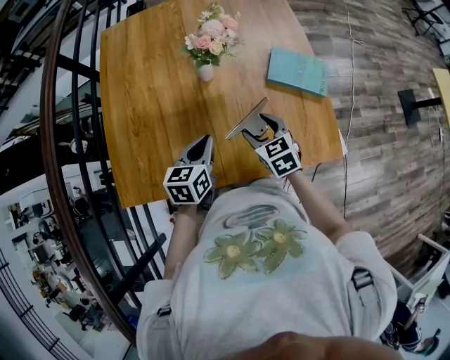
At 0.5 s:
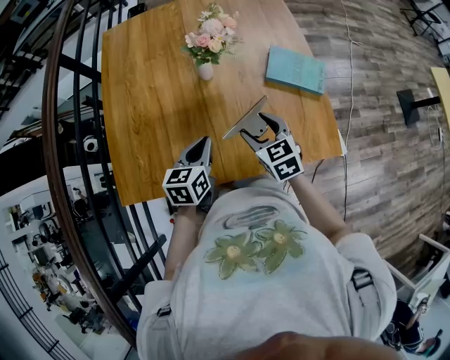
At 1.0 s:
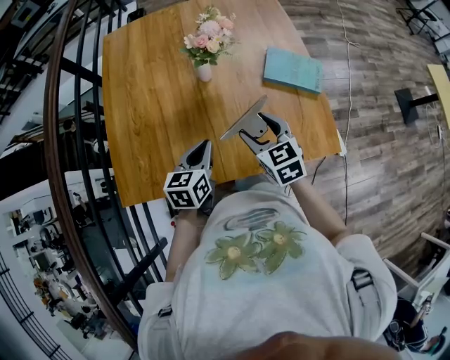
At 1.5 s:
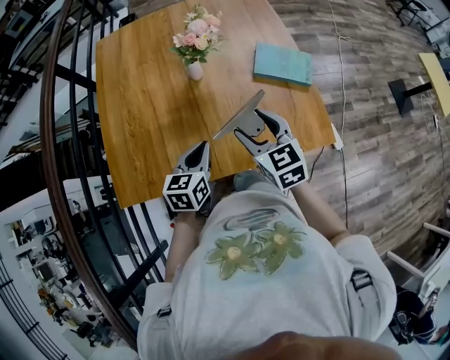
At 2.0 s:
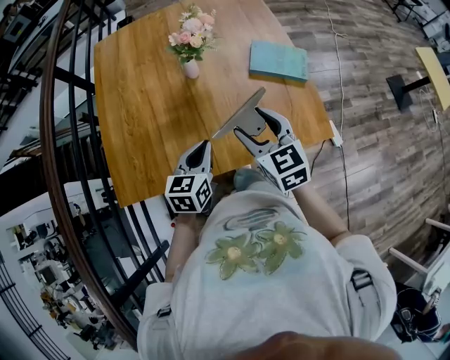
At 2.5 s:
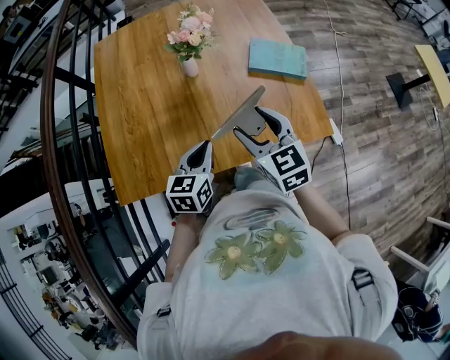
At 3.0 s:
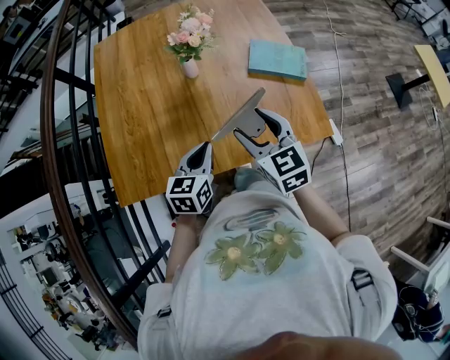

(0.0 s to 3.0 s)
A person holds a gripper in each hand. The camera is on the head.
0.0 s - 1.5 s: The right gripper heads upward and backward, covering some 15 cm. Meanwhile the left gripper is displaced backward by about 5 cm.
1.5 s - 3.0 s: The grippers stay close to where they were, moving slightly.

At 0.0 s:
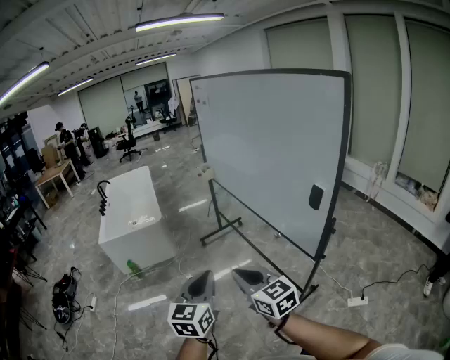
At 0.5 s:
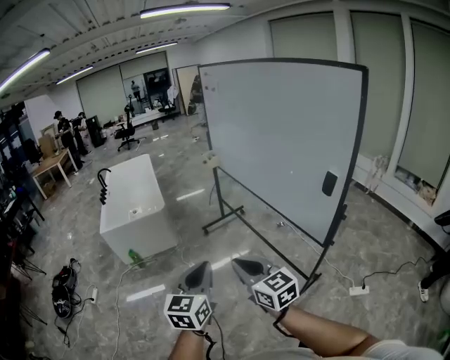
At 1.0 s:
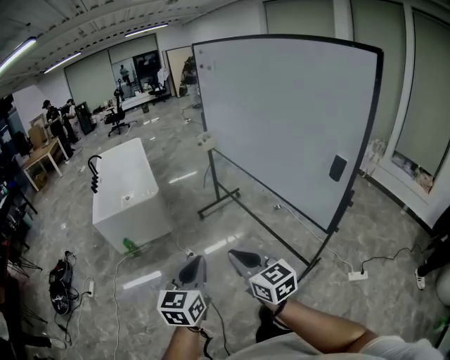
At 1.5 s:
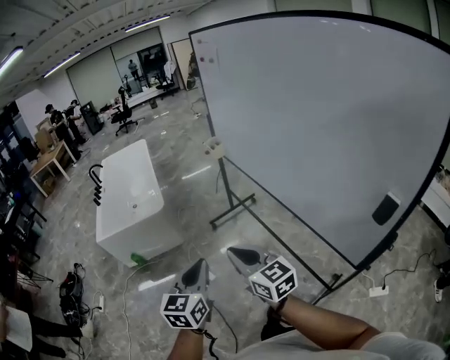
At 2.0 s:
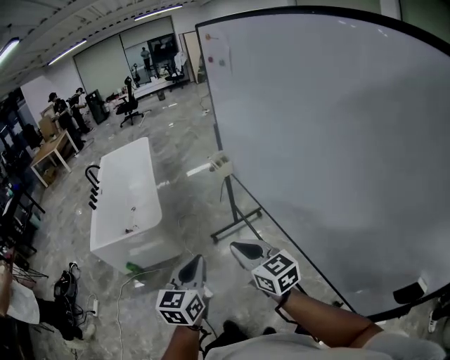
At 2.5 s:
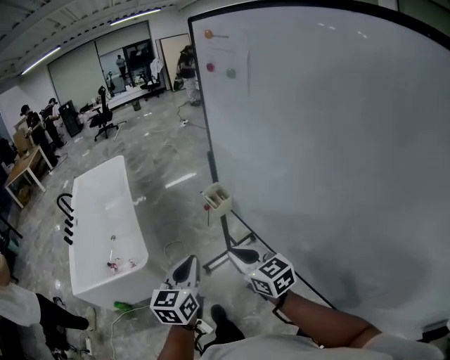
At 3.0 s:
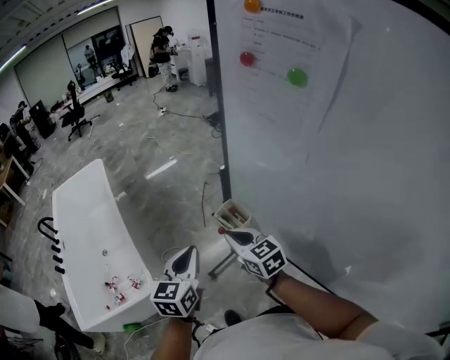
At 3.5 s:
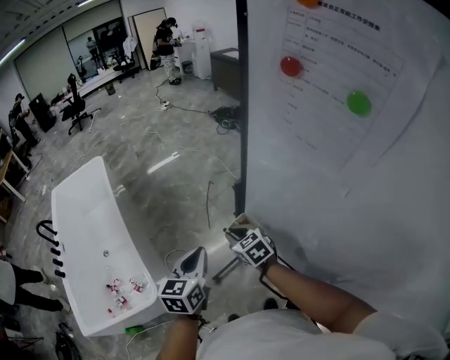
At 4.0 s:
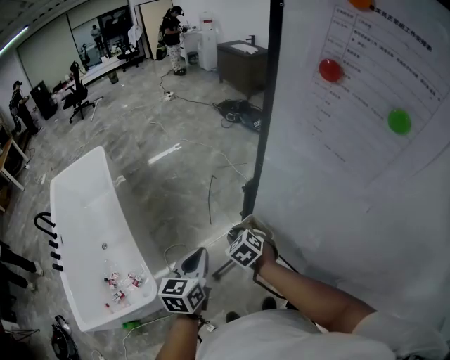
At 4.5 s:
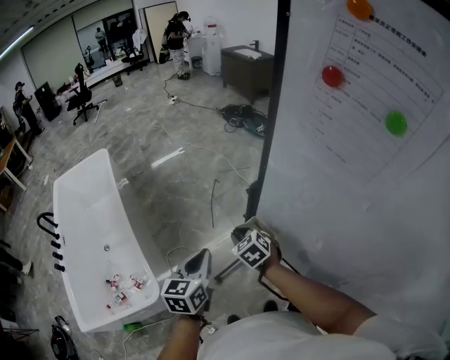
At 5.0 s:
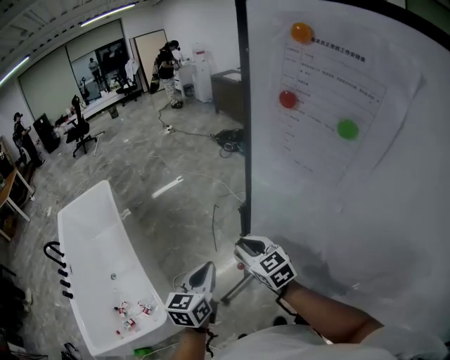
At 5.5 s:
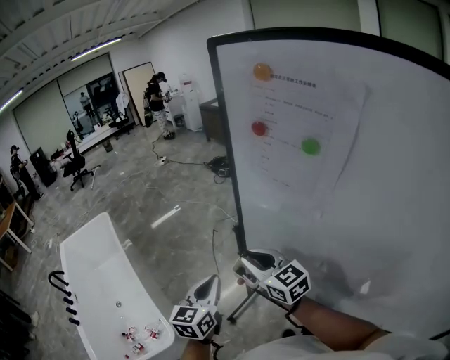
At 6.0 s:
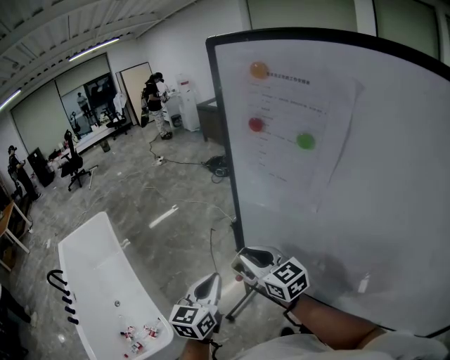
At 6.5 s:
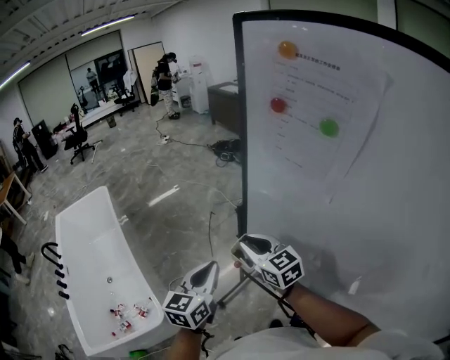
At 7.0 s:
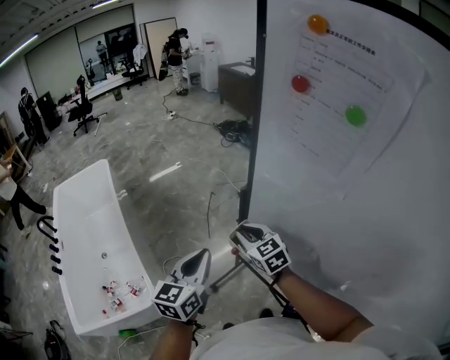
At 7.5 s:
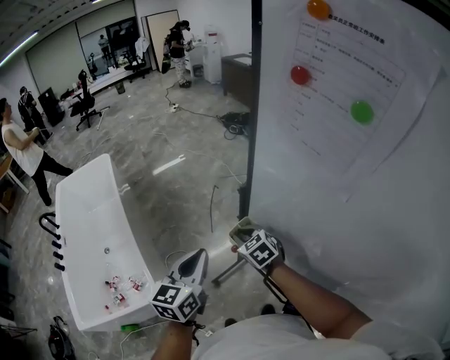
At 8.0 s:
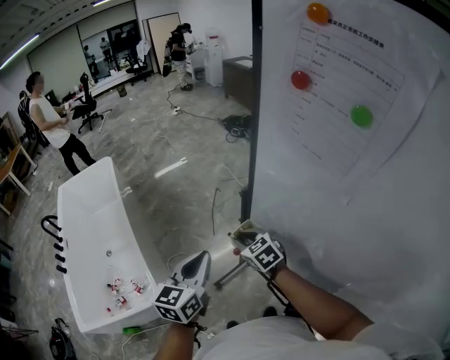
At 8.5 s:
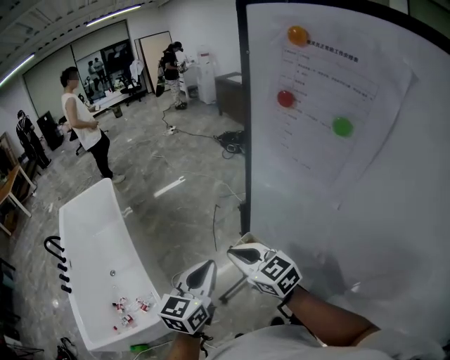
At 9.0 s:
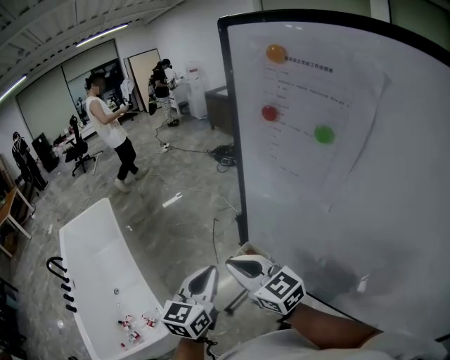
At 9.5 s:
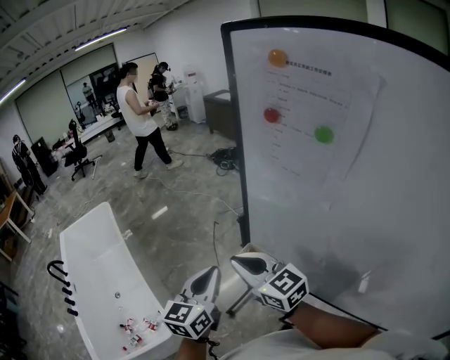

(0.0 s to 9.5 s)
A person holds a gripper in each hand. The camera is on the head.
0.0 s - 2.0 s: The two grippers travel together, forward, approximately 60 cm.
2.0 s - 4.0 s: Both grippers are carried forward, some 70 cm. The right gripper tilts its fingers approximately 40 degrees downward.
4.0 s - 5.5 s: The left gripper goes approximately 10 cm upward. Meanwhile the right gripper travels upward by roughly 25 cm, and points its fingers approximately 40 degrees further upward.
5.5 s - 7.5 s: The right gripper is displaced downward by approximately 20 cm, and points its fingers some 30 degrees further downward.
7.5 s - 9.5 s: The right gripper heads upward and backward, covering some 25 cm, and points its fingers roughly 40 degrees further upward. Meanwhile the left gripper goes roughly 5 cm upward.

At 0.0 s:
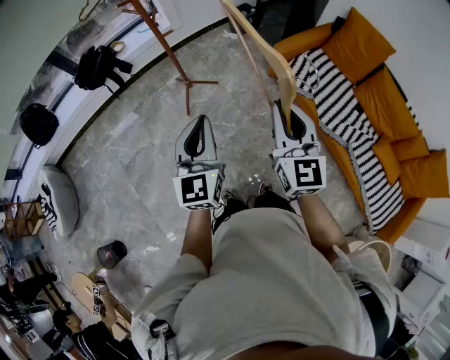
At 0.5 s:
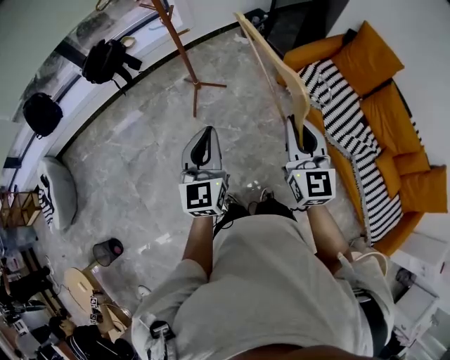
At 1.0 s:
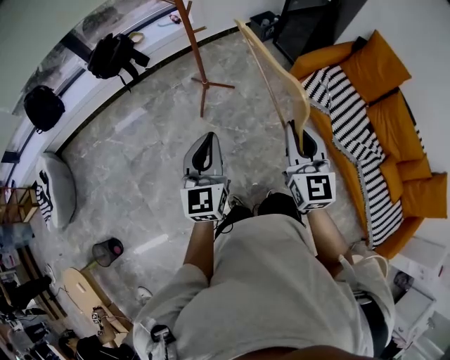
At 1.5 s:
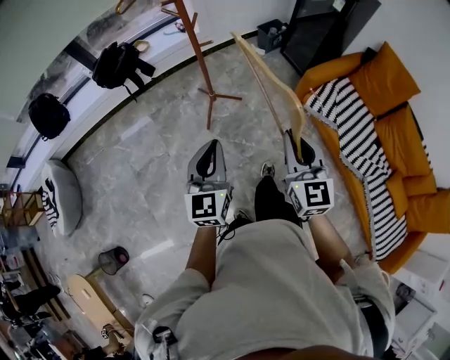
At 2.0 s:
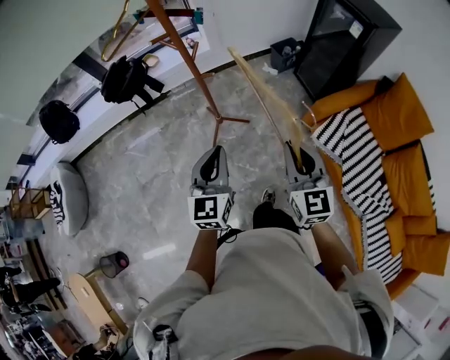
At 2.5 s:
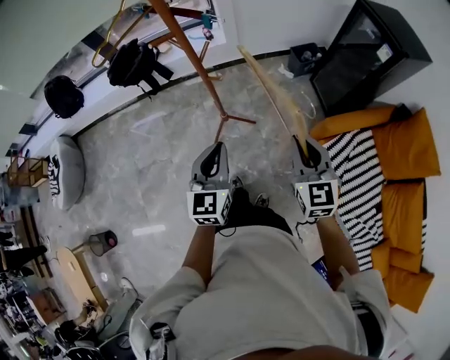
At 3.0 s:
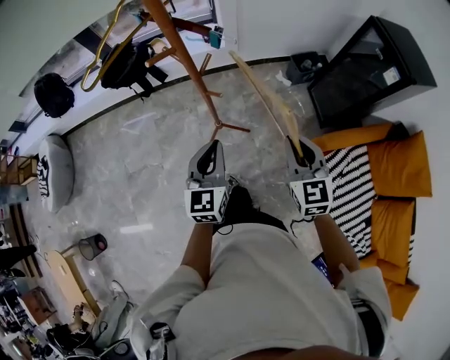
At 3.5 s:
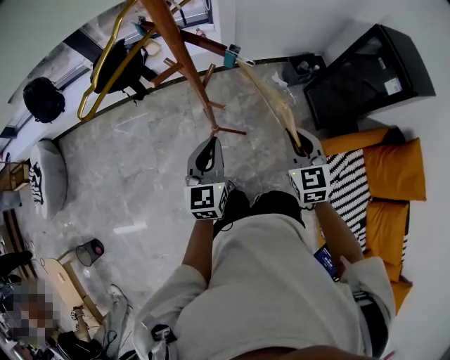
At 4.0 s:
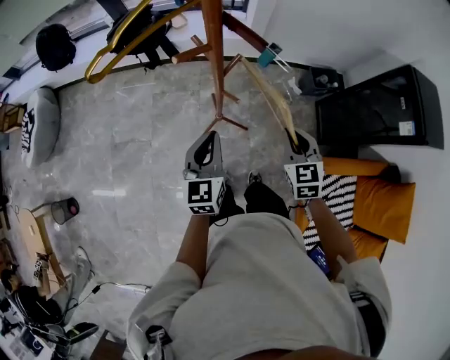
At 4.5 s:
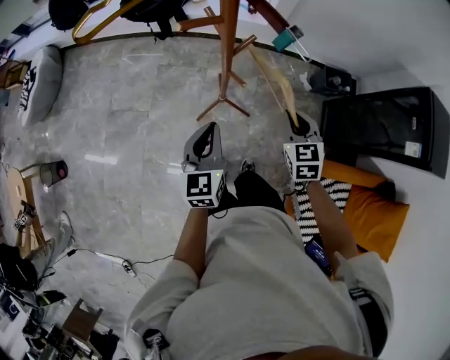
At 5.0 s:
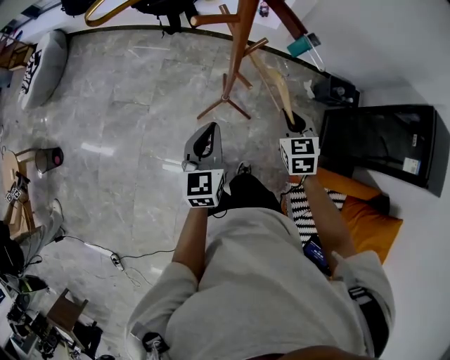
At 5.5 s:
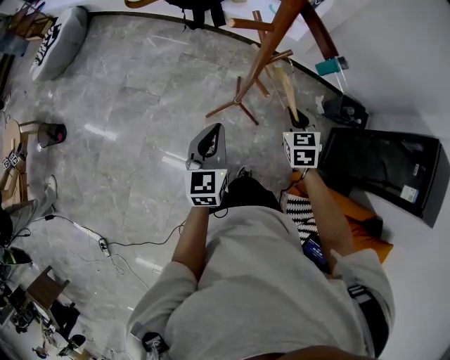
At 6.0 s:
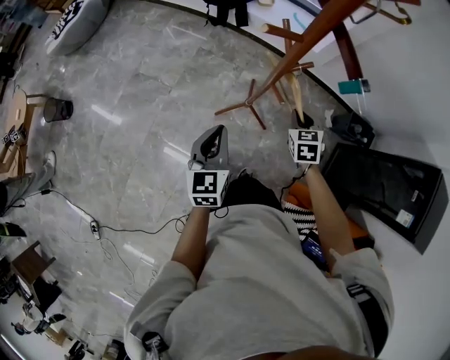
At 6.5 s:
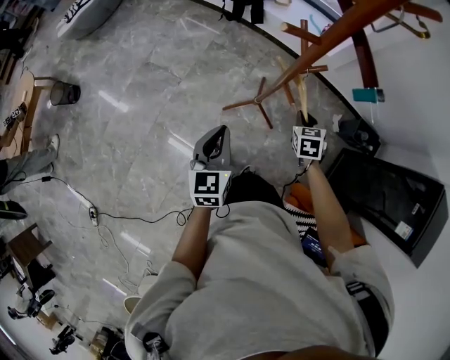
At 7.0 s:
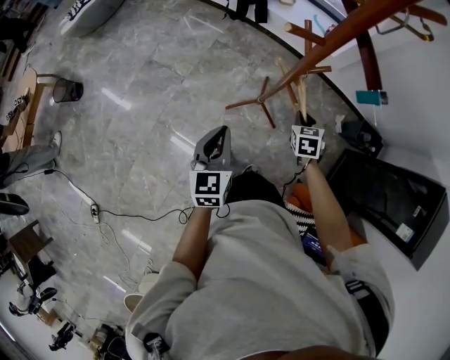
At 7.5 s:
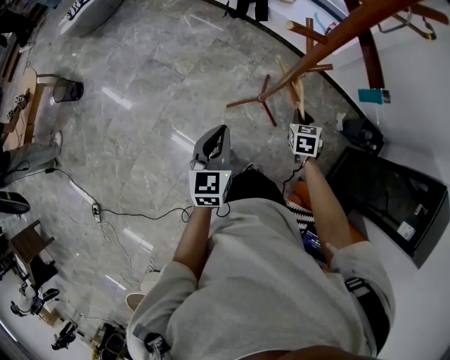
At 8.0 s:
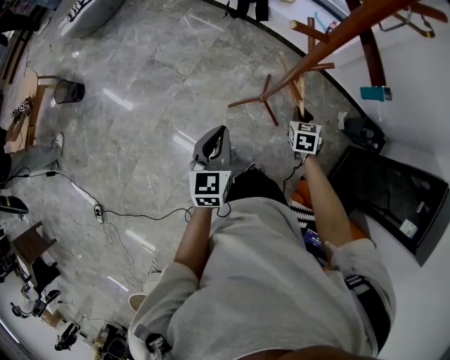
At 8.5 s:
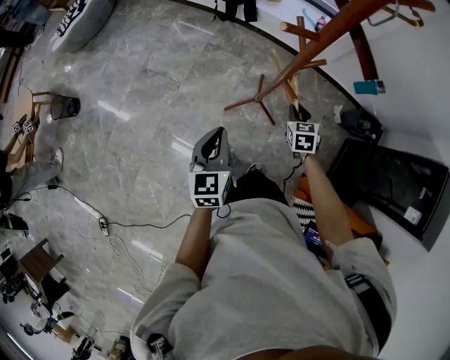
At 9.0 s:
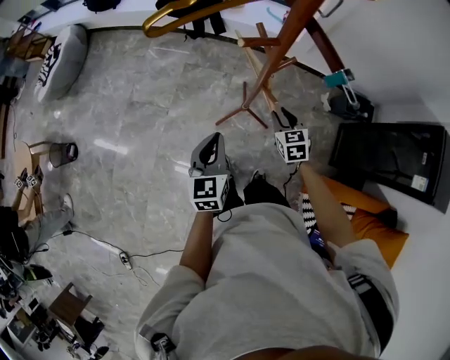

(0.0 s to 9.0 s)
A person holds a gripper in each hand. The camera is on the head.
0.0 s - 2.0 s: Both grippers travel together forward, about 25 cm.
2.0 s - 4.5 s: The left gripper shifts by some 25 cm, and swivels roughly 30 degrees; the right gripper changes place by about 40 cm, and rotates approximately 40 degrees.
4.5 s - 7.0 s: The left gripper shifts approximately 5 cm to the left, and swivels some 20 degrees, while the right gripper heads downward and forward, covering some 20 cm.
7.0 s - 9.0 s: The right gripper moves roughly 5 cm.

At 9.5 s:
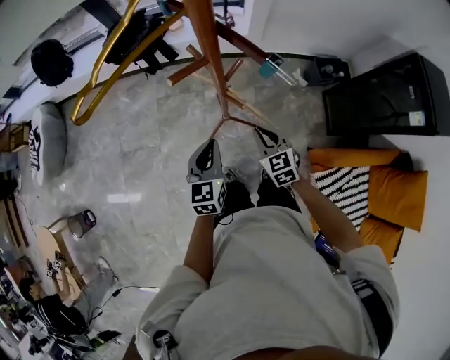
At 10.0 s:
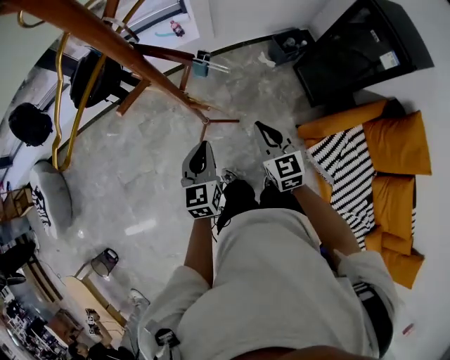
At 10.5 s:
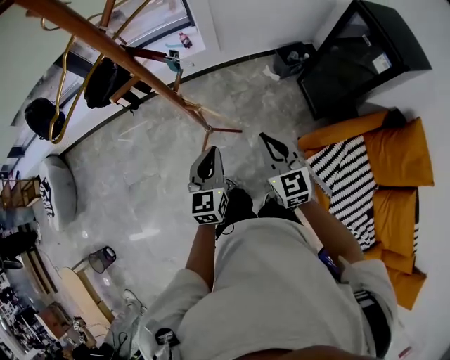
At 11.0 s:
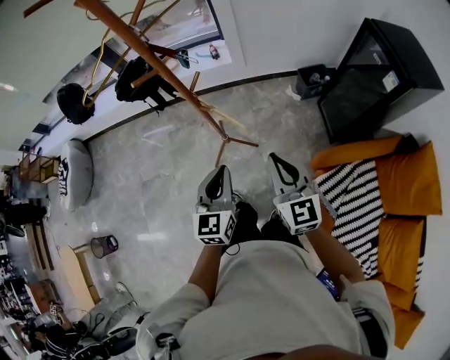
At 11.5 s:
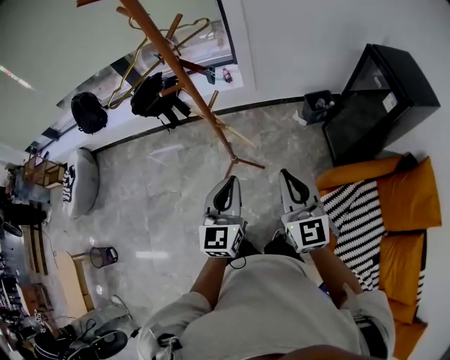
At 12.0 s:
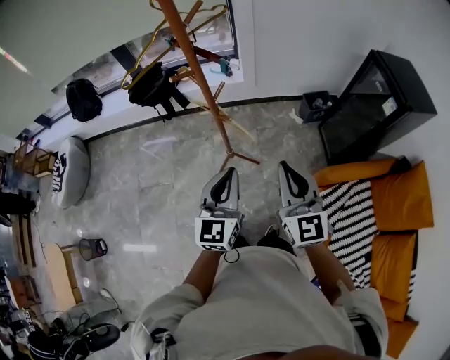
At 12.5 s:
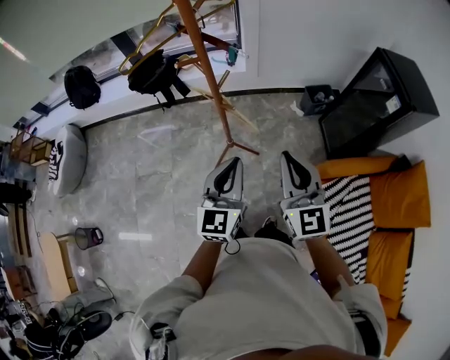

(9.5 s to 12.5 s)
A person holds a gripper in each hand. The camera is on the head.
9.5 s - 11.0 s: The right gripper heads upward, backward and to the right, covering about 30 cm, and rotates some 30 degrees. The left gripper shifts roughly 25 cm to the right, backward and upward.
11.0 s - 12.5 s: The right gripper travels upward and to the left by approximately 10 cm, while the left gripper moves upward, about 10 cm.

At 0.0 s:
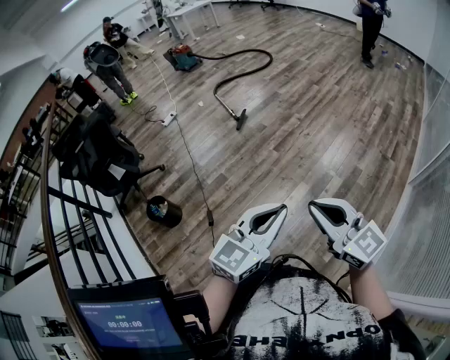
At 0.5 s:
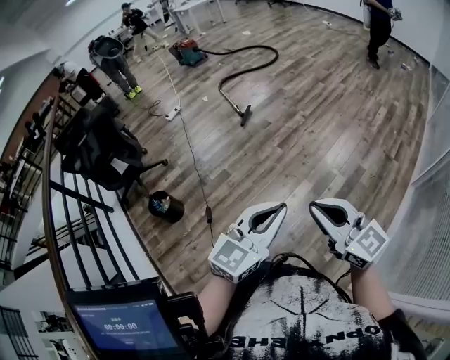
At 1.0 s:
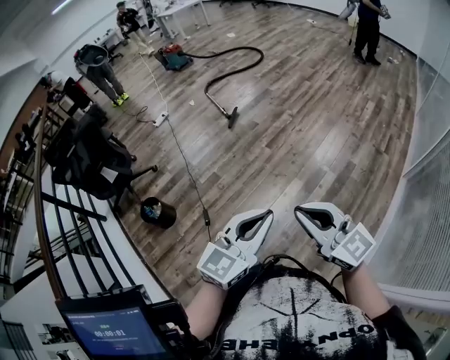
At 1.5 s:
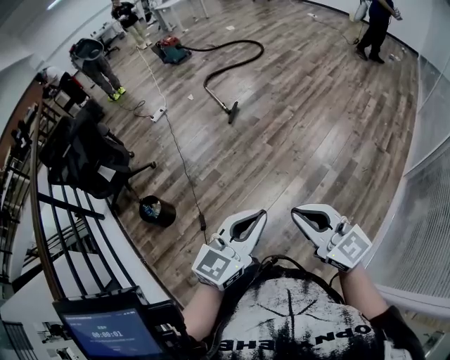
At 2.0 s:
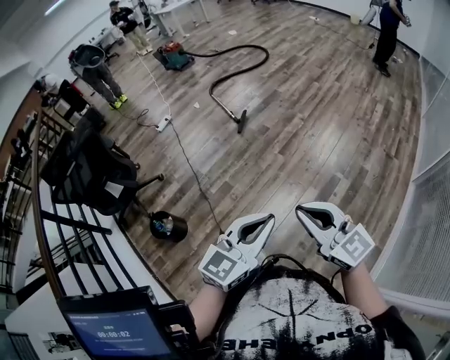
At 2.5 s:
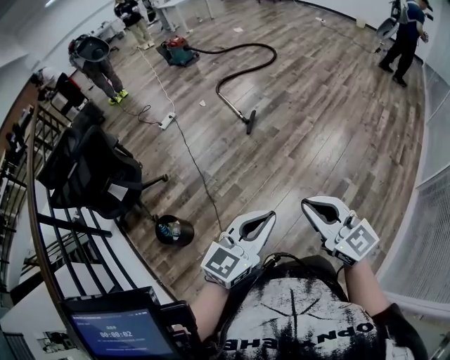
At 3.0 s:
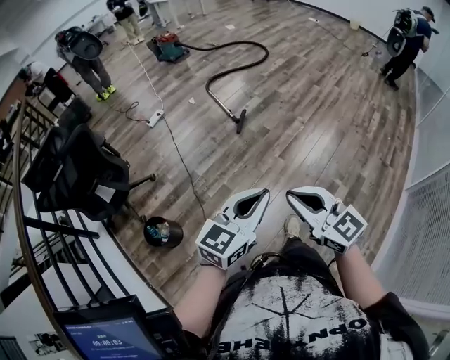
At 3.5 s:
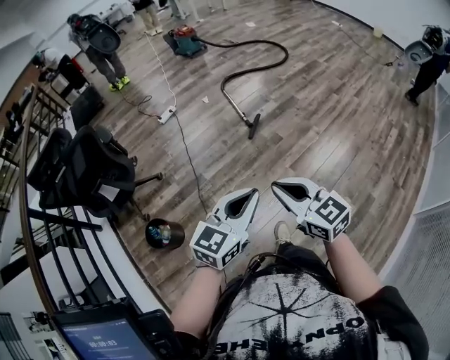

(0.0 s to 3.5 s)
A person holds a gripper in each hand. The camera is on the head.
0.0 s - 2.0 s: The grippers both shift to the left and forward by roughly 20 cm.
2.0 s - 3.5 s: Both grippers move forward and to the left, about 30 cm.
